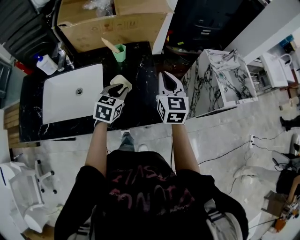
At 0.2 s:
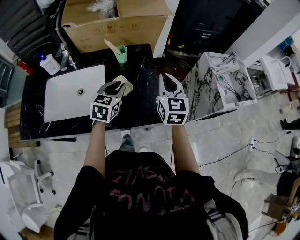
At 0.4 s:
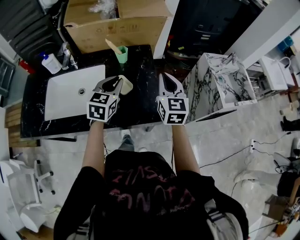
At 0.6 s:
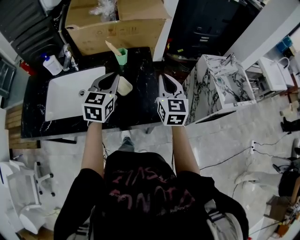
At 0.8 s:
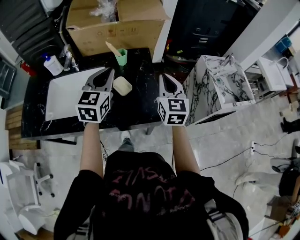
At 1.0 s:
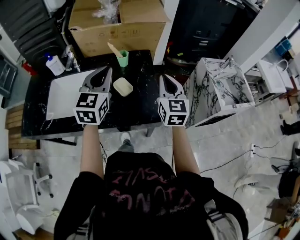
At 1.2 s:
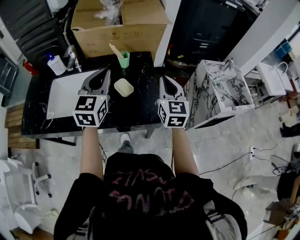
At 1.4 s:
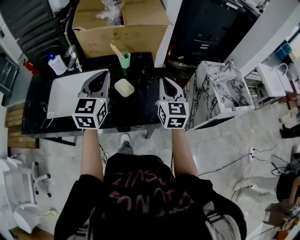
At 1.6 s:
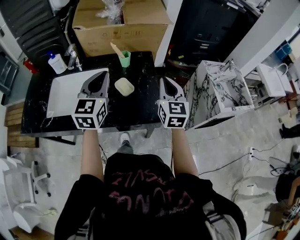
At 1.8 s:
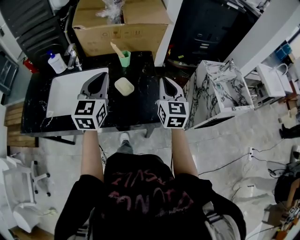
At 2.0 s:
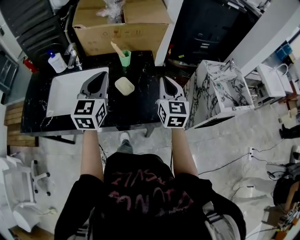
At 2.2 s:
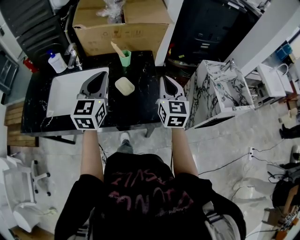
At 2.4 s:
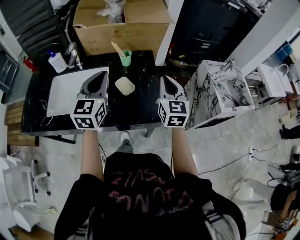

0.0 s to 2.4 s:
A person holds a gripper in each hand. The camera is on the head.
0.0 to 1.2 s: The left gripper moves upward, approximately 20 cm, and changes its angle by roughly 30 degrees. Meanwhile the right gripper goes roughly 5 cm backward.
1.2 to 2.4 s: There are only small adjustments of the grippers.

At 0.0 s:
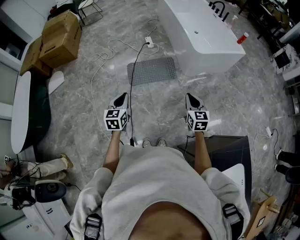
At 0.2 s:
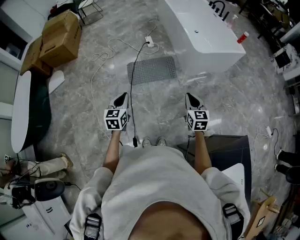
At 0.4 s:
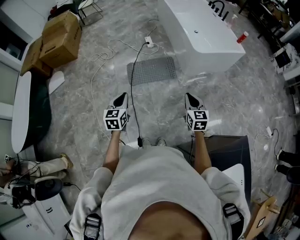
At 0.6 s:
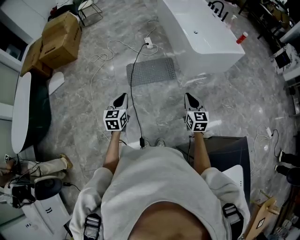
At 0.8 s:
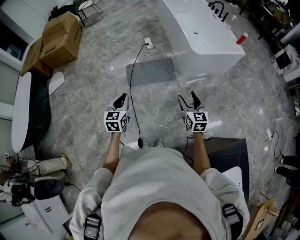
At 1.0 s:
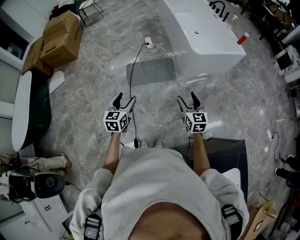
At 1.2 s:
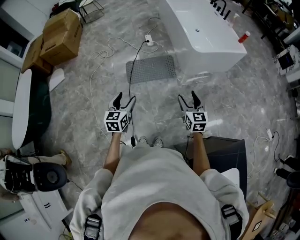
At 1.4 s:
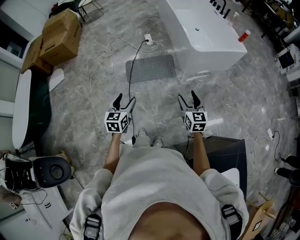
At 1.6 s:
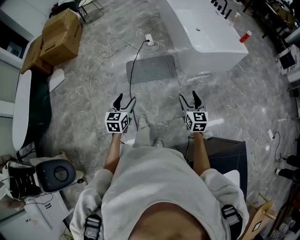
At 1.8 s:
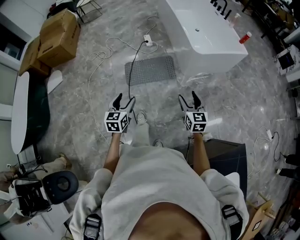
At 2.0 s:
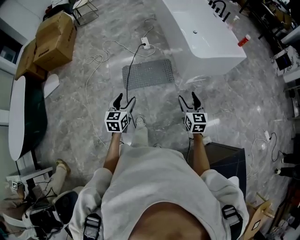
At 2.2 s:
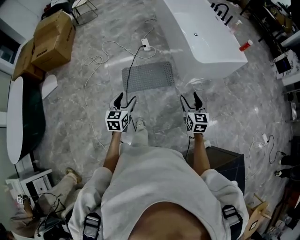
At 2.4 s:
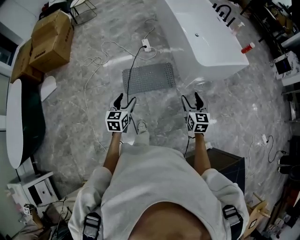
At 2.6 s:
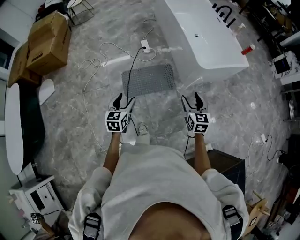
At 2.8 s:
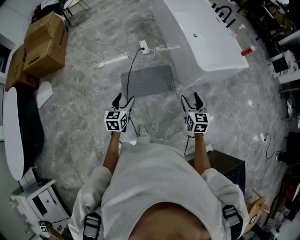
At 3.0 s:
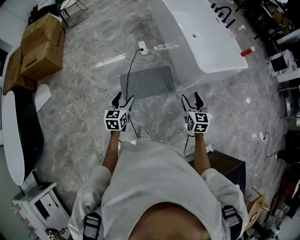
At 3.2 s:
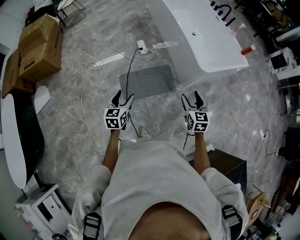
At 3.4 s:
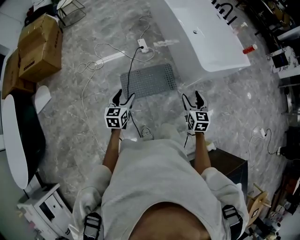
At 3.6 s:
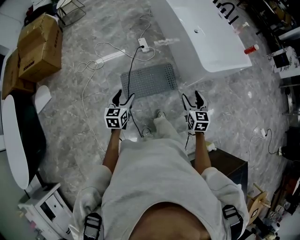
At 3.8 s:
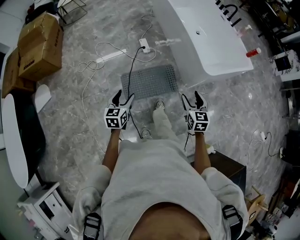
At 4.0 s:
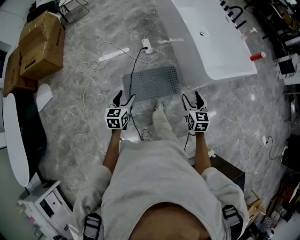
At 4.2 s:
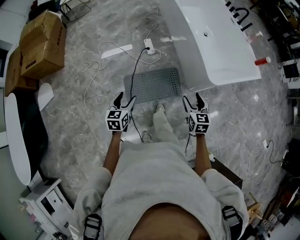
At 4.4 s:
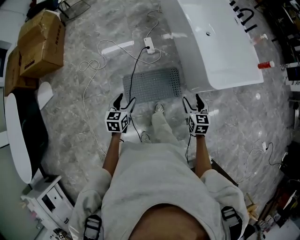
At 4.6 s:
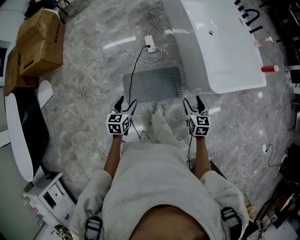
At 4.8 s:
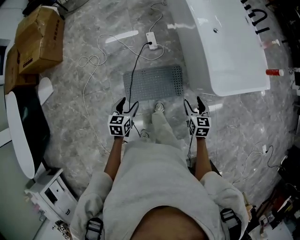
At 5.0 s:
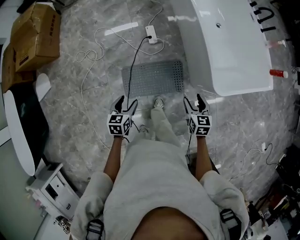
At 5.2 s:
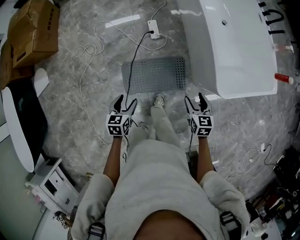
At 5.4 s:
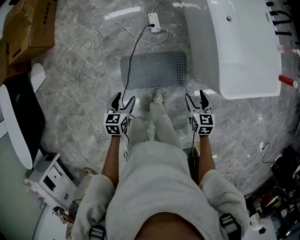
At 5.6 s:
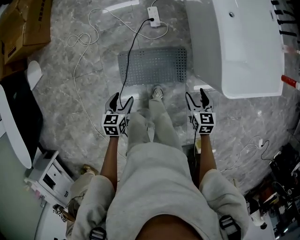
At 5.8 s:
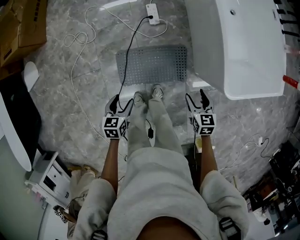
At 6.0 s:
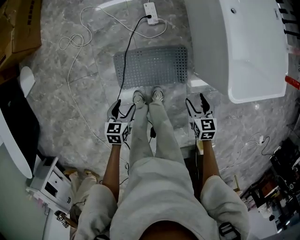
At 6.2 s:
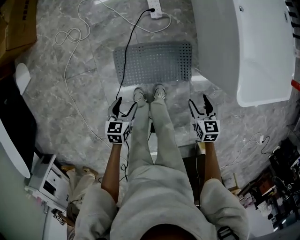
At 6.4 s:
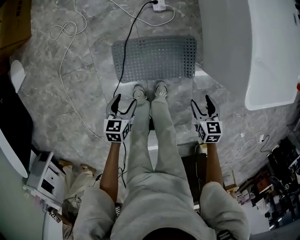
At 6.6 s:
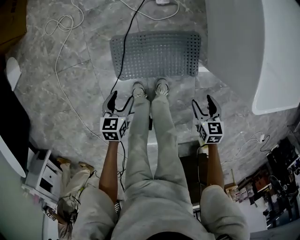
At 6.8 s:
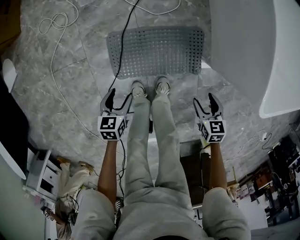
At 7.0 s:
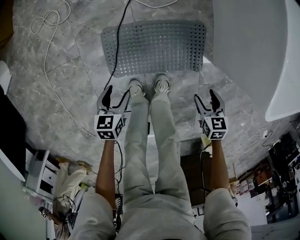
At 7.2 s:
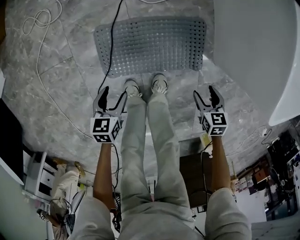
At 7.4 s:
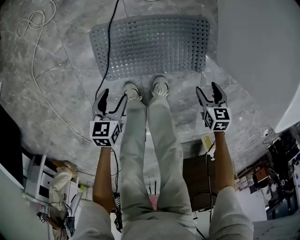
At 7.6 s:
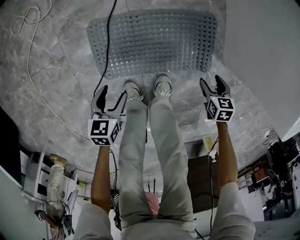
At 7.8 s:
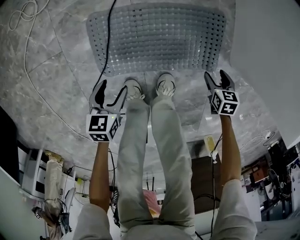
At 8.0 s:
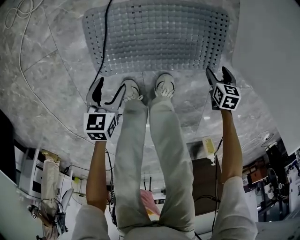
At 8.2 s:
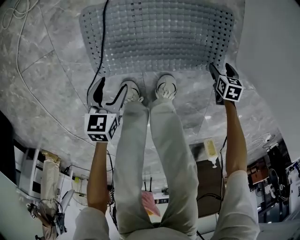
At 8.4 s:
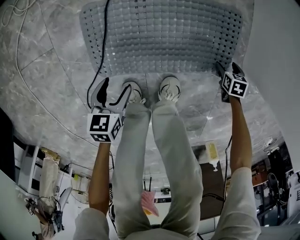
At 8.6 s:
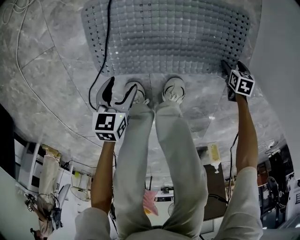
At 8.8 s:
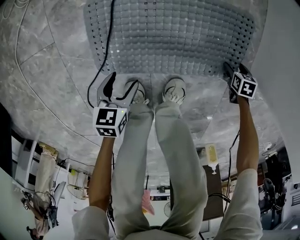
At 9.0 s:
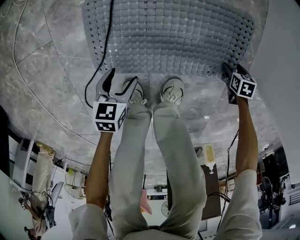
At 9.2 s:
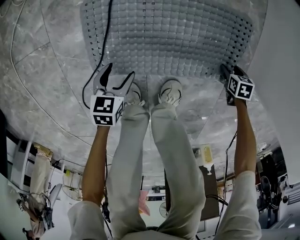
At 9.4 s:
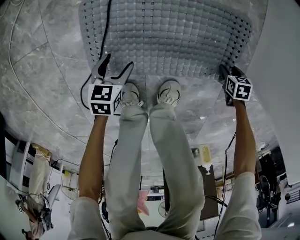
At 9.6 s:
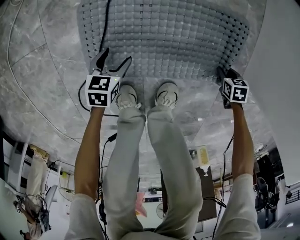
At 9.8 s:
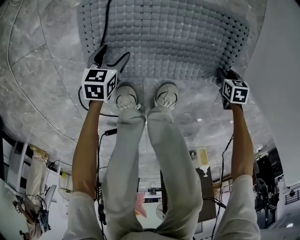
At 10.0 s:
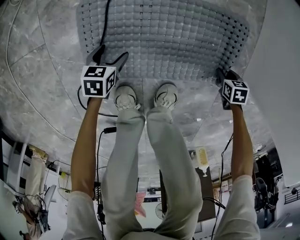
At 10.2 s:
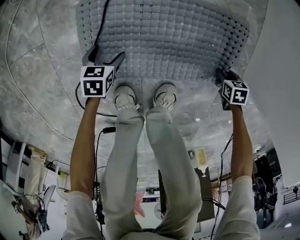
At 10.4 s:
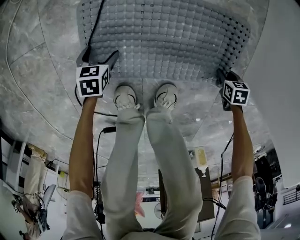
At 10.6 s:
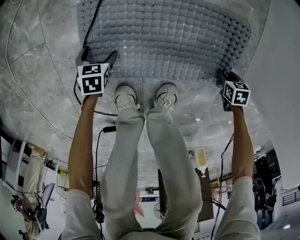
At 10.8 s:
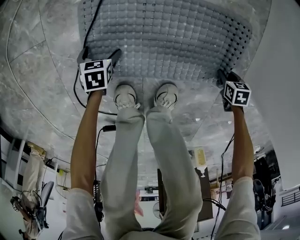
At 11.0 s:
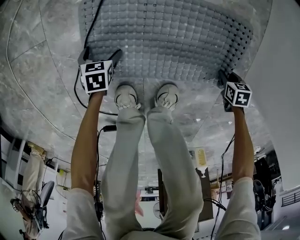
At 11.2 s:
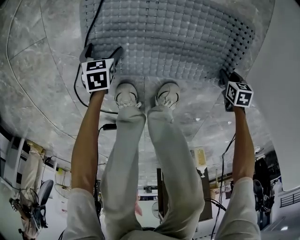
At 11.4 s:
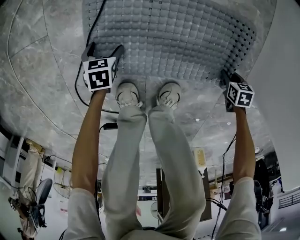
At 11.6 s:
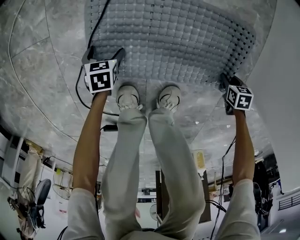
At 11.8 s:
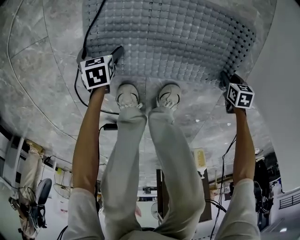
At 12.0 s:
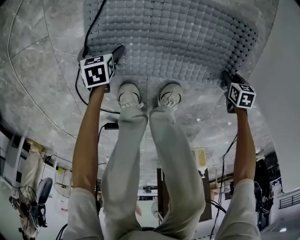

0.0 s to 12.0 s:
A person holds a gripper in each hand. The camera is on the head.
0.0 to 1.6 s: The right gripper ends up some 5 cm from where it was, and opens. Meanwhile the left gripper is displaced to the right by some 5 cm, and opens up.
1.6 to 3.0 s: Both grippers travel together forward and to the left, approximately 30 cm.
3.0 to 4.4 s: The right gripper moves forward and downward, roughly 20 cm, while the left gripper shifts some 15 cm forward.
4.4 to 6.0 s: The right gripper shifts roughly 25 cm downward and forward, and rotates approximately 20 degrees. Meanwhile the left gripper shifts some 20 cm downward.
6.0 to 7.6 s: The grippers both shift downward by approximately 40 cm.
7.6 to 9.0 s: The grippers both shift downward by some 20 cm.
9.0 to 10.4 s: The left gripper heads downward, covering some 10 cm, while the right gripper closes its fingers.
10.4 to 12.0 s: The grippers stay close to where they were, moving slightly.

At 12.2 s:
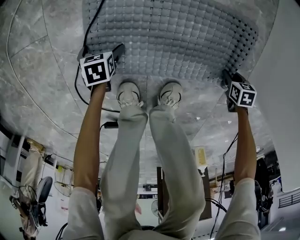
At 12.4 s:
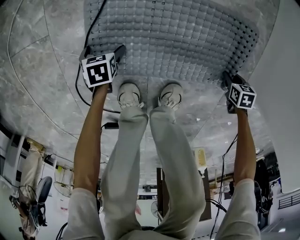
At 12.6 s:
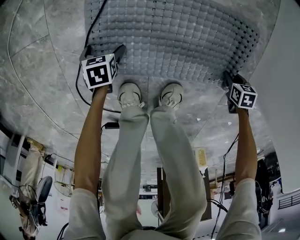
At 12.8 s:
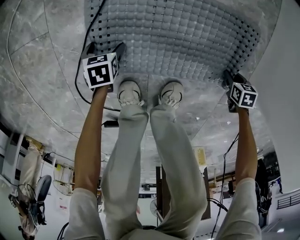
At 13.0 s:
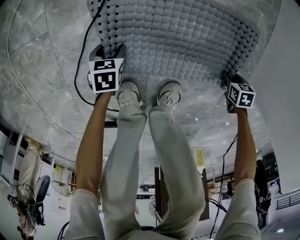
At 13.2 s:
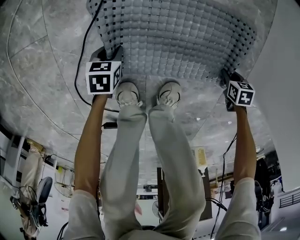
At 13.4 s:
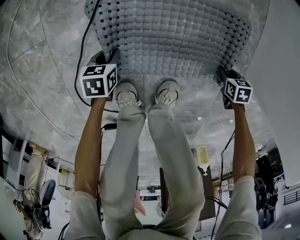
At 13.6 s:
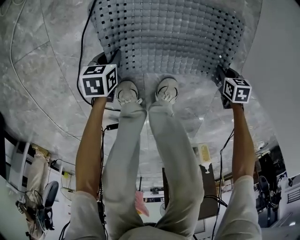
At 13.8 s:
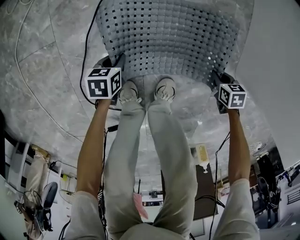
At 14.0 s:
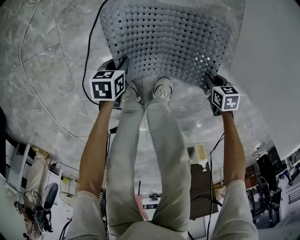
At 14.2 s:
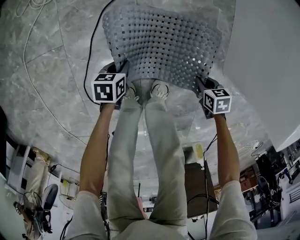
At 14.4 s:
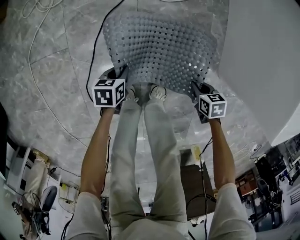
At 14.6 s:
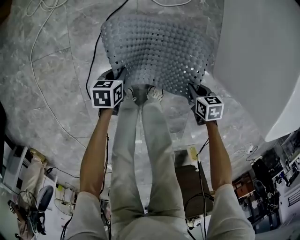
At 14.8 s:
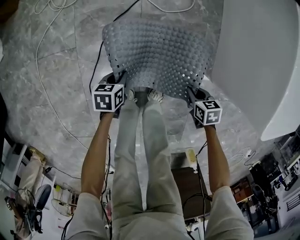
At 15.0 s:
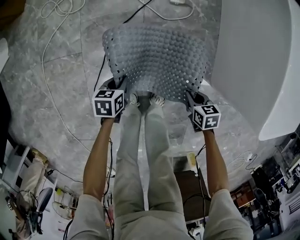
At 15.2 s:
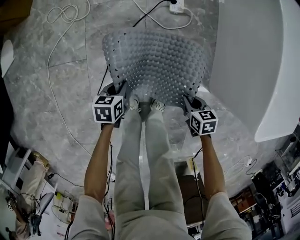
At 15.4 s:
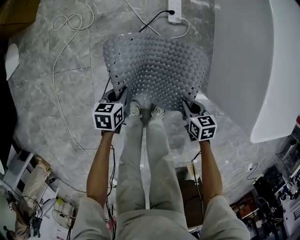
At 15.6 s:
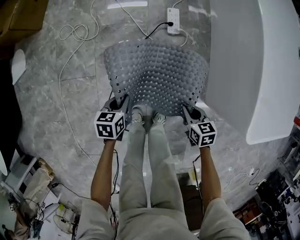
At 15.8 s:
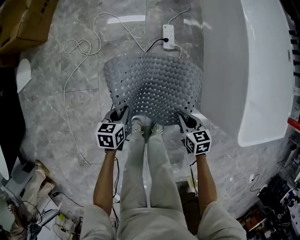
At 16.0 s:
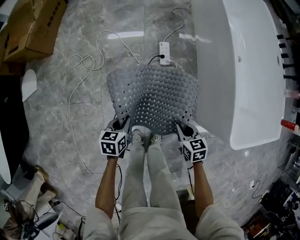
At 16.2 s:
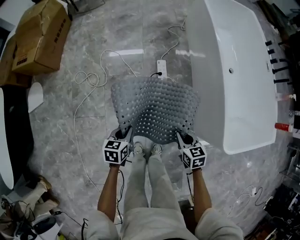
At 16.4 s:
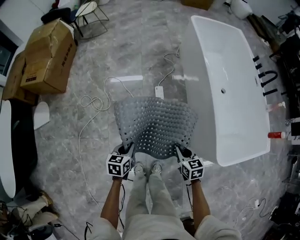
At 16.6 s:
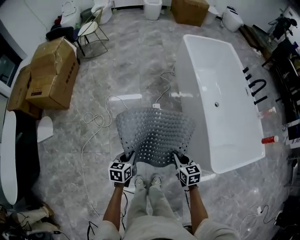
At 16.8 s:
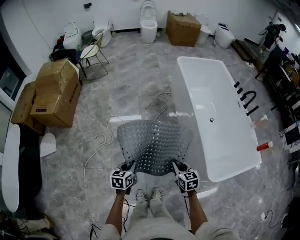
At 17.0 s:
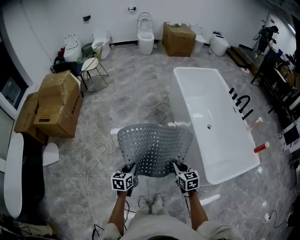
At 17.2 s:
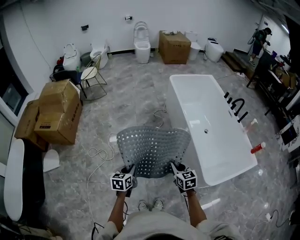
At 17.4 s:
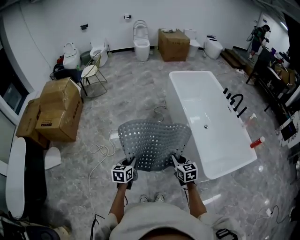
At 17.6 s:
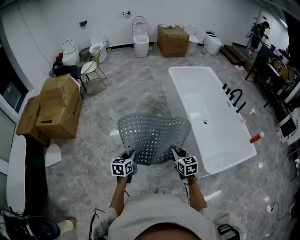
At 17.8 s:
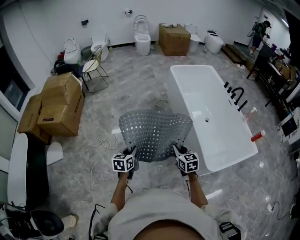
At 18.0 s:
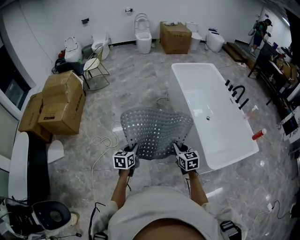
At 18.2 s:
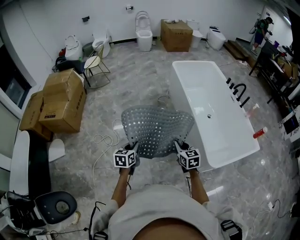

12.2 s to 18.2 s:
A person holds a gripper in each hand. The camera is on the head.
12.2 to 13.8 s: Both grippers travel together upward, roughly 10 cm. The left gripper closes its fingers.
13.8 to 15.2 s: The two grippers go about 25 cm upward.
15.2 to 16.6 s: The two grippers go about 40 cm upward. The right gripper turns by about 30 degrees, while the left gripper changes its angle by about 20 degrees.
16.6 to 18.2 s: The two grippers go approximately 20 cm upward.

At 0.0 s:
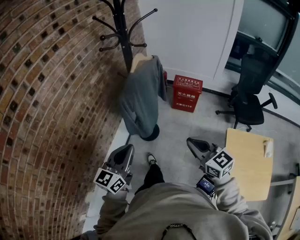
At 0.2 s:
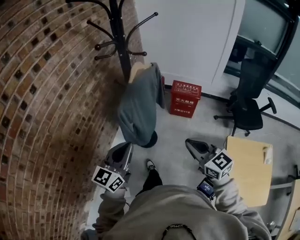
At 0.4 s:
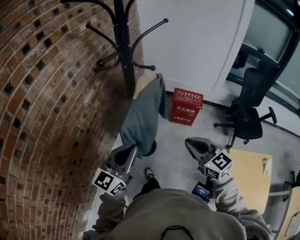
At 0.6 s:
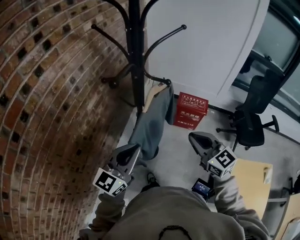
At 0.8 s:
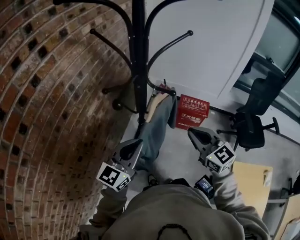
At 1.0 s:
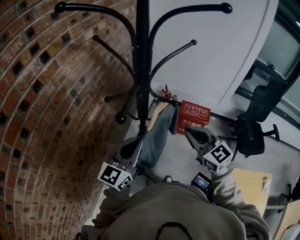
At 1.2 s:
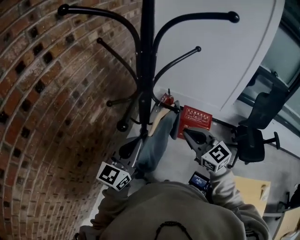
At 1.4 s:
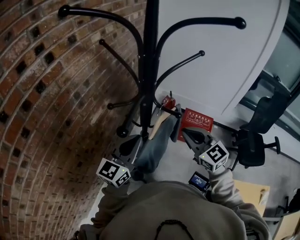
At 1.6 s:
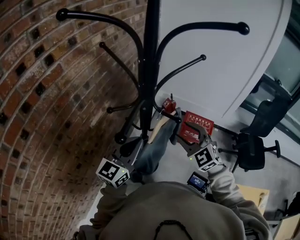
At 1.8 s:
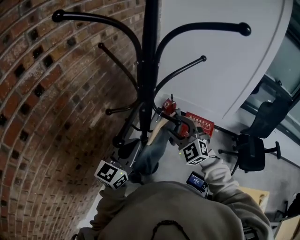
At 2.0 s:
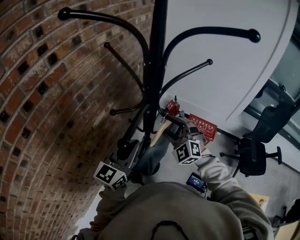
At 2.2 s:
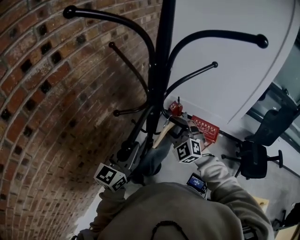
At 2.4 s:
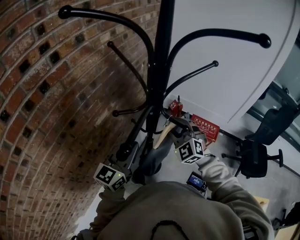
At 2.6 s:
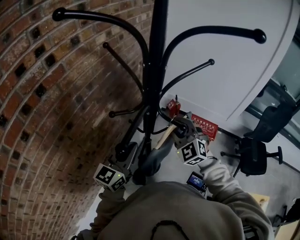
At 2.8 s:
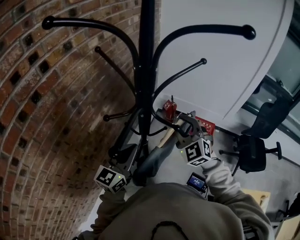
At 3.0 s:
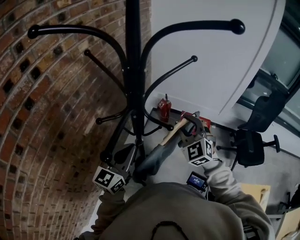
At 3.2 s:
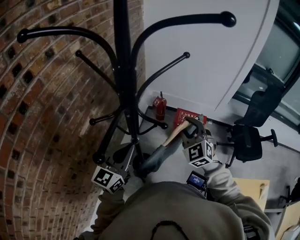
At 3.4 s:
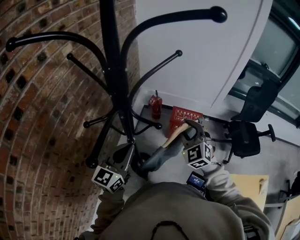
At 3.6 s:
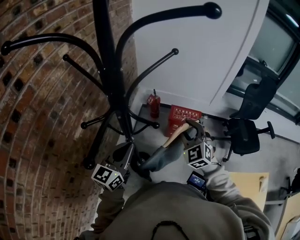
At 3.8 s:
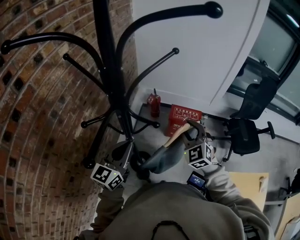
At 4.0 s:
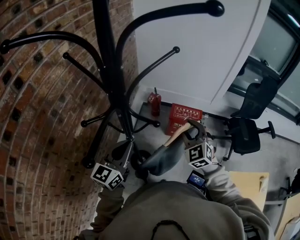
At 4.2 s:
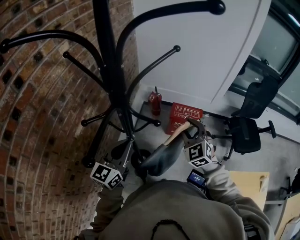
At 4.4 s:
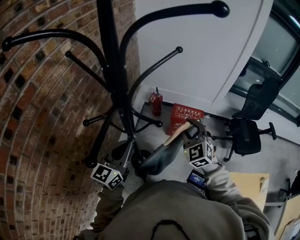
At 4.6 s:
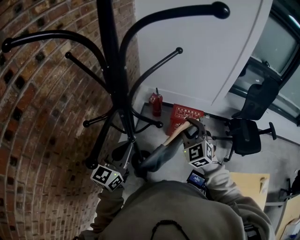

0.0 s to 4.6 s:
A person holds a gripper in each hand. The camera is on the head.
0.0 to 1.6 s: The pair of grippers is taken forward, some 50 cm. The right gripper swivels about 40 degrees, and opens up.
1.6 to 3.0 s: The right gripper heads forward, covering roughly 5 cm, and travels to the left and back again, approximately 10 cm each way.
3.0 to 4.6 s: The right gripper goes about 5 cm to the right.
